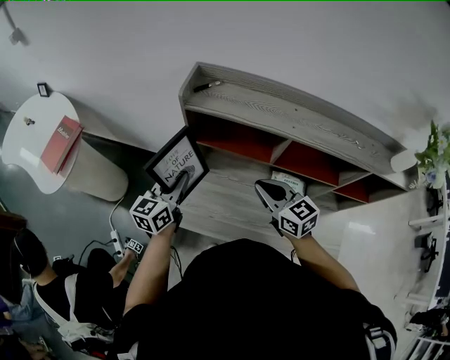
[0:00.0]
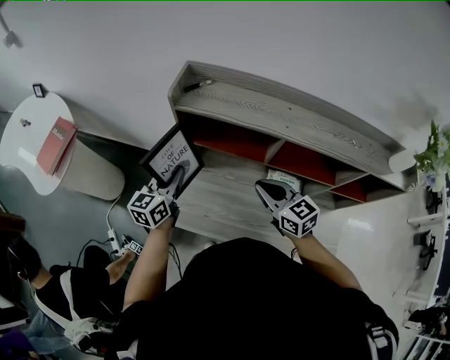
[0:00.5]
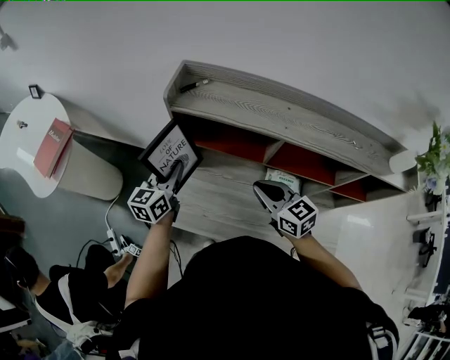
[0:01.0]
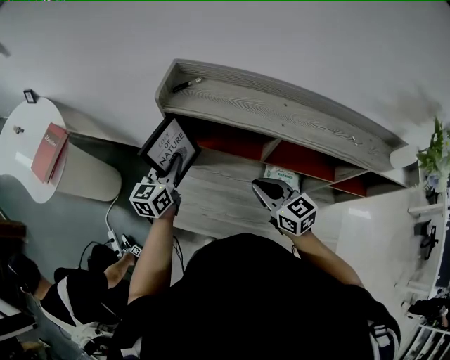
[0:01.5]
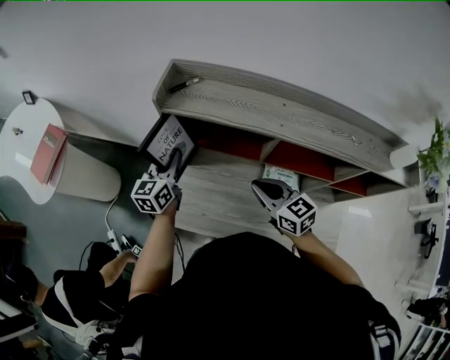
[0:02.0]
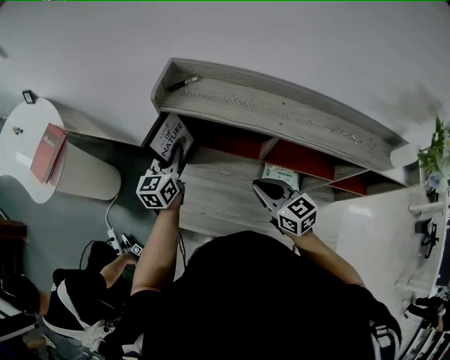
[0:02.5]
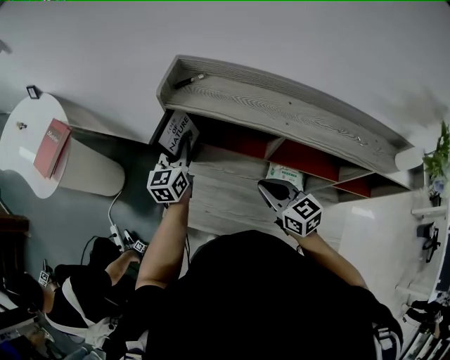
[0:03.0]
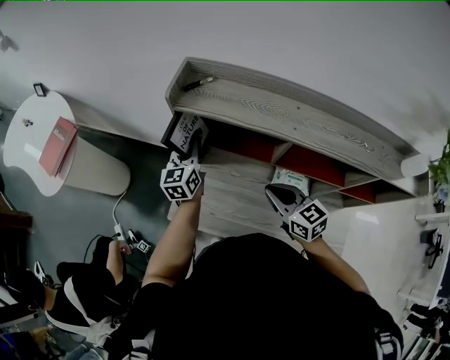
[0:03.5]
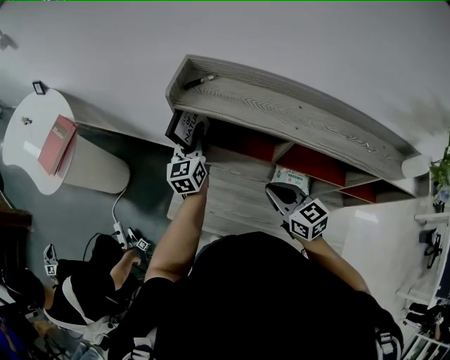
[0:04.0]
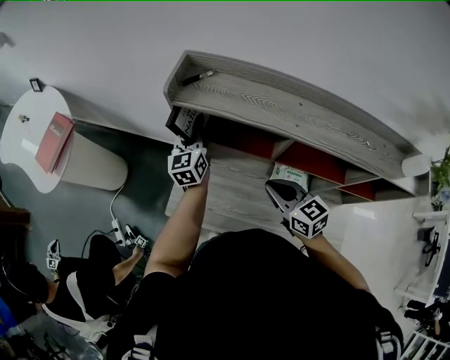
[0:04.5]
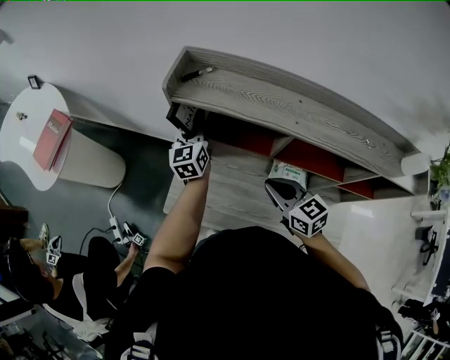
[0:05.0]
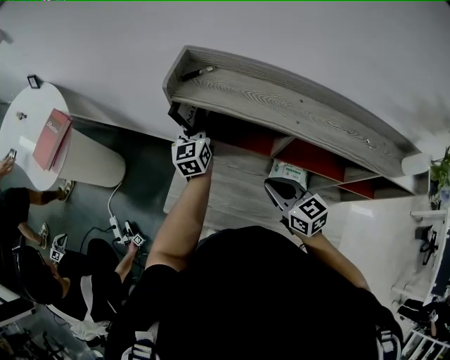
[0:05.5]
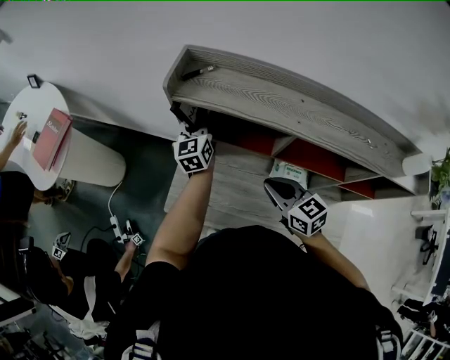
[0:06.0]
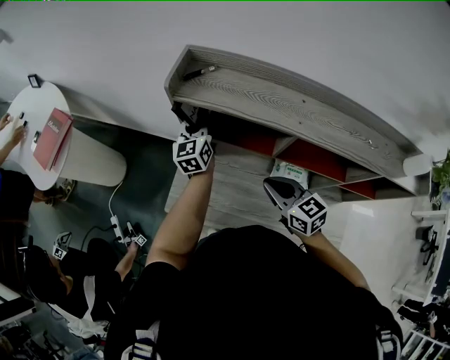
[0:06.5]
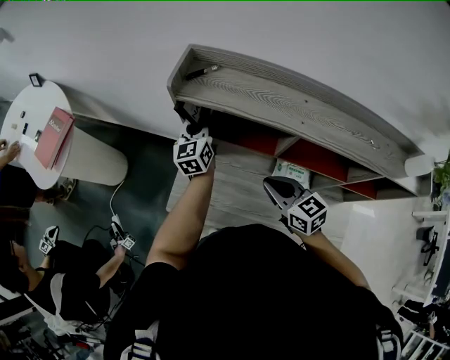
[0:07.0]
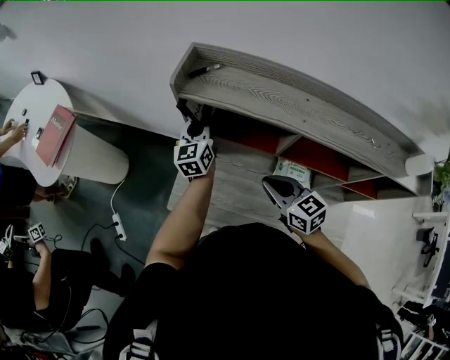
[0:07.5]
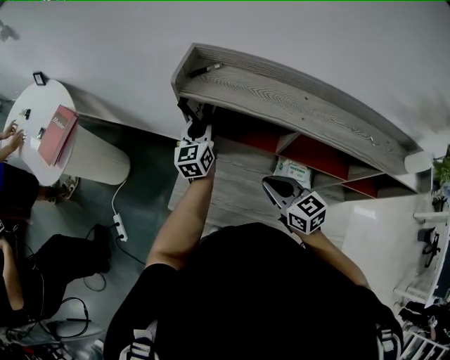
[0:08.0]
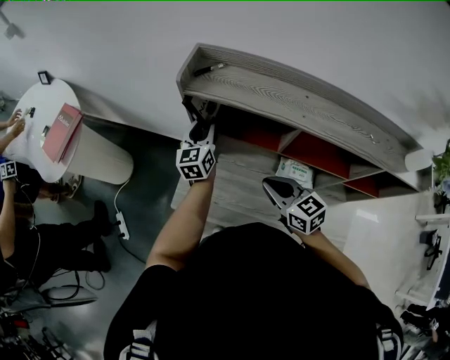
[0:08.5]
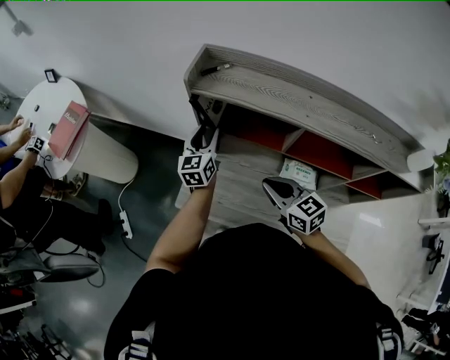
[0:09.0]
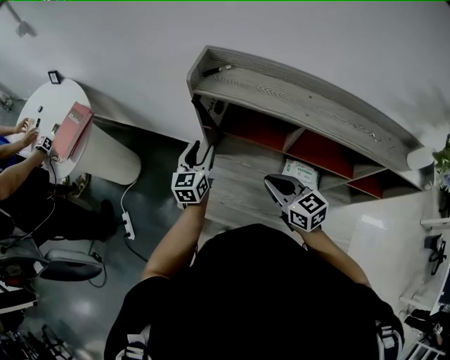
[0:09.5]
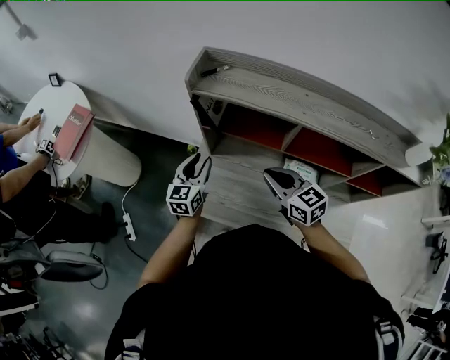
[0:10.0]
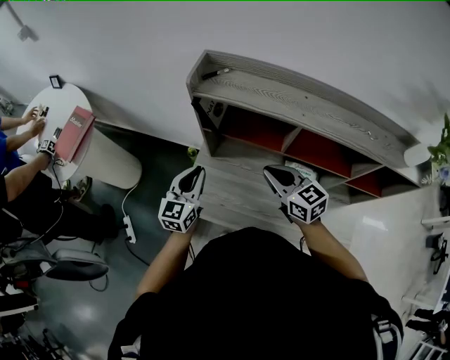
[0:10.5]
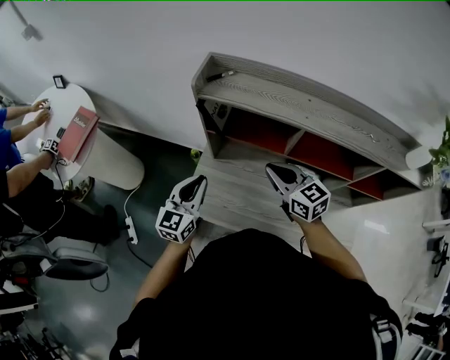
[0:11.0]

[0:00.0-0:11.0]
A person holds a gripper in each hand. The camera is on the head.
0:00.0 to 0:02.0: The left gripper is displaced forward by some 10 cm.
0:02.0 to 0:03.5: The grippers make only small movements.
0:03.5 to 0:05.5: The left gripper ends up some 5 cm from where it was.
0:05.5 to 0:07.5: The grippers stay close to where they were, moving slightly.
0:07.5 to 0:09.0: The left gripper shifts about 5 cm backward, and opens.
0:09.0 to 0:11.0: The left gripper shifts roughly 15 cm backward, and closes. The right gripper shifts by approximately 5 cm.

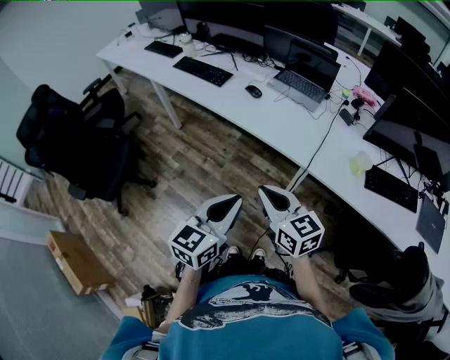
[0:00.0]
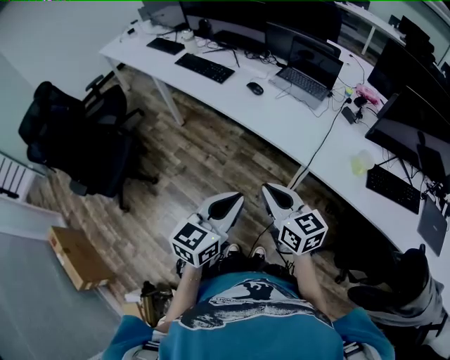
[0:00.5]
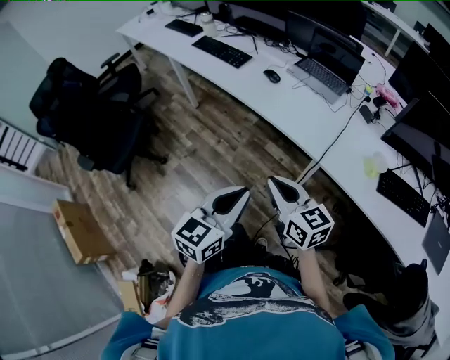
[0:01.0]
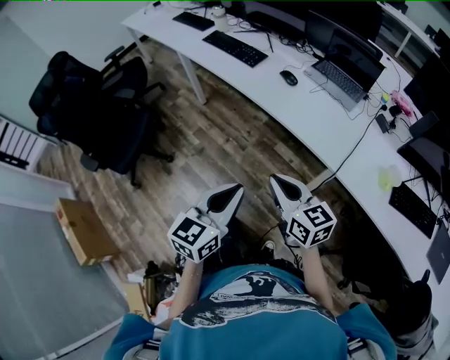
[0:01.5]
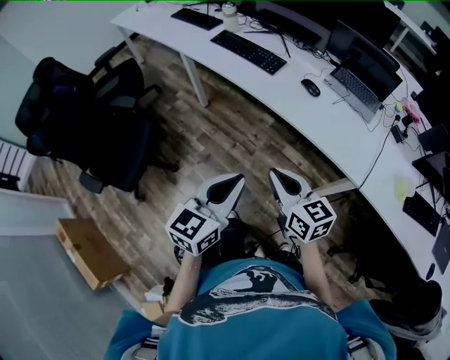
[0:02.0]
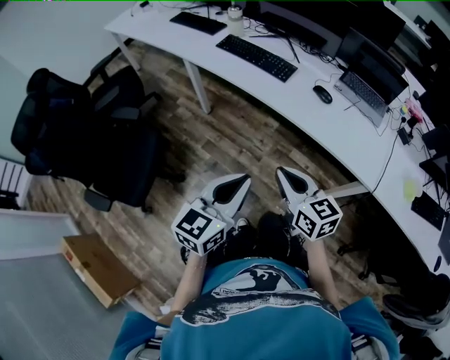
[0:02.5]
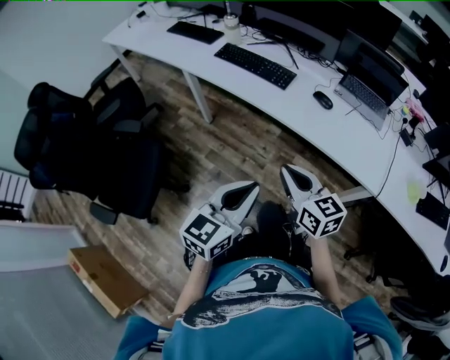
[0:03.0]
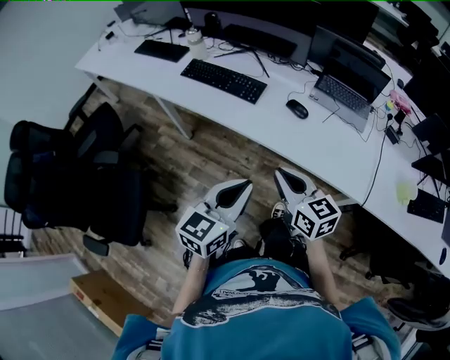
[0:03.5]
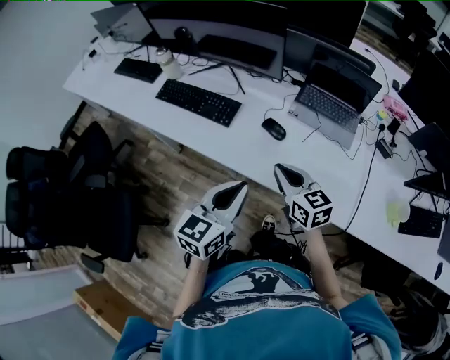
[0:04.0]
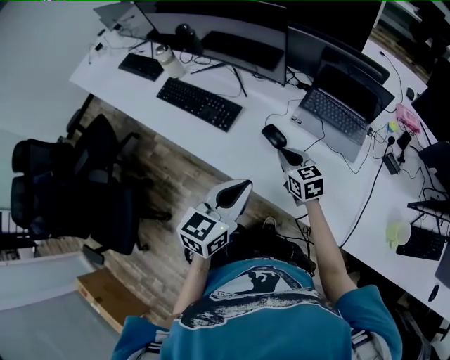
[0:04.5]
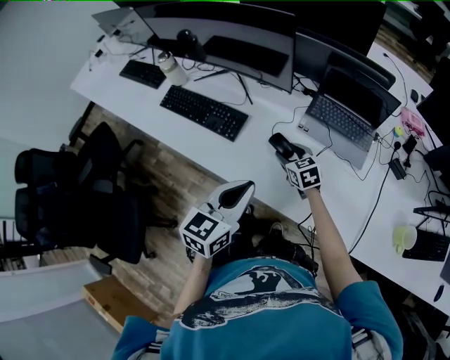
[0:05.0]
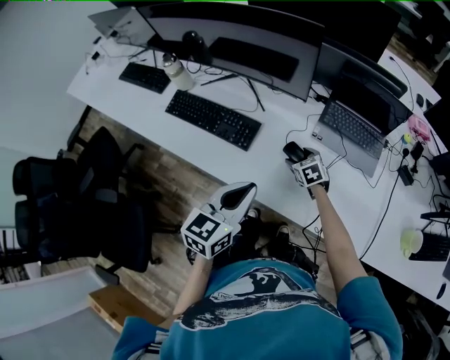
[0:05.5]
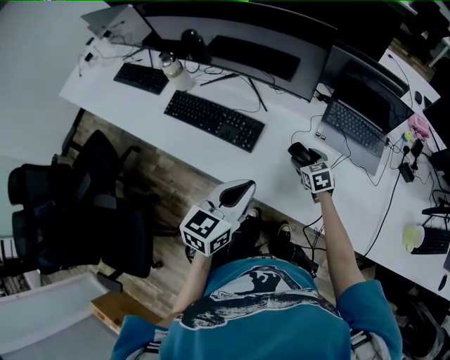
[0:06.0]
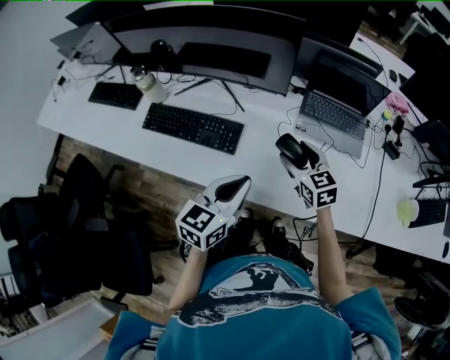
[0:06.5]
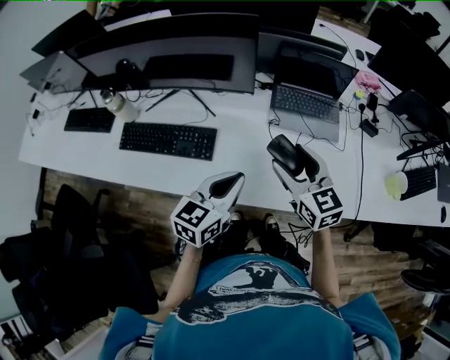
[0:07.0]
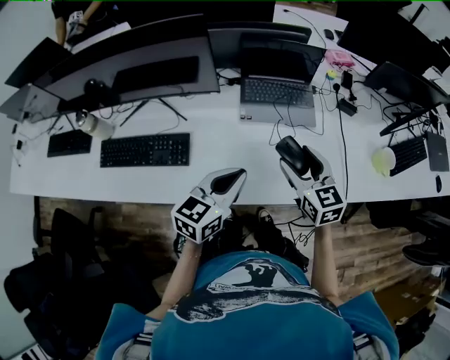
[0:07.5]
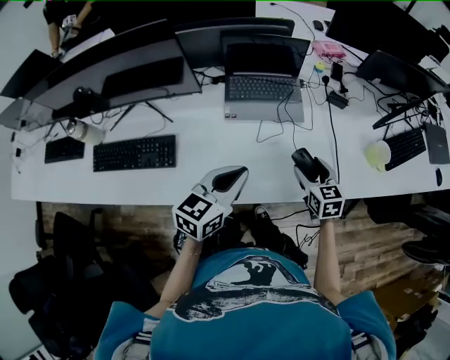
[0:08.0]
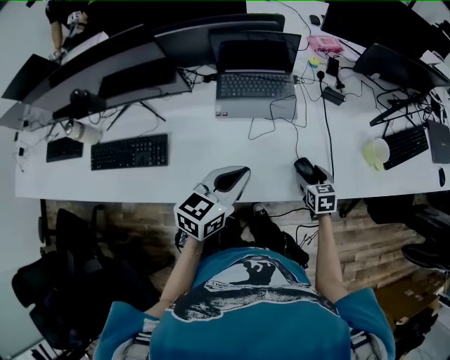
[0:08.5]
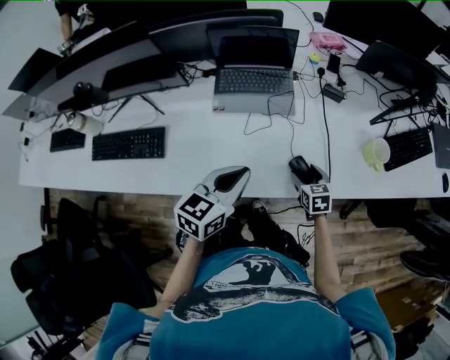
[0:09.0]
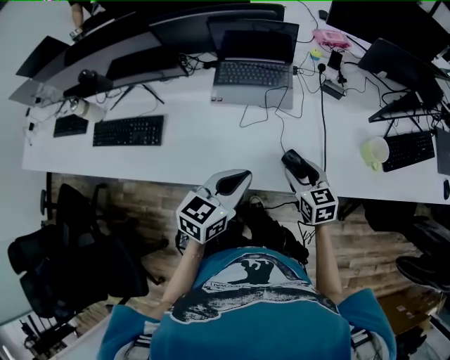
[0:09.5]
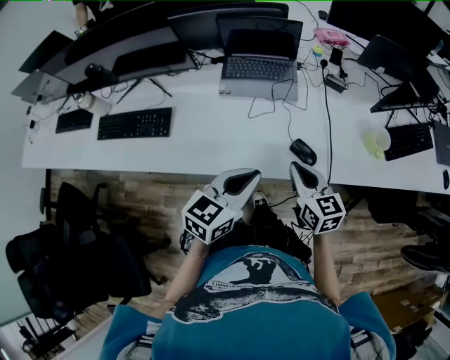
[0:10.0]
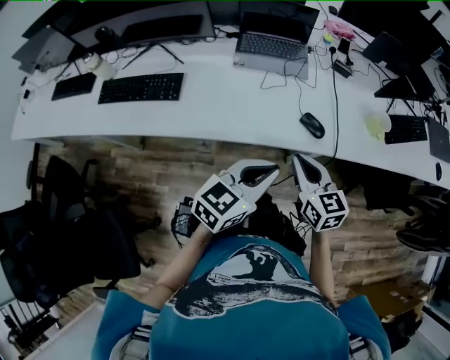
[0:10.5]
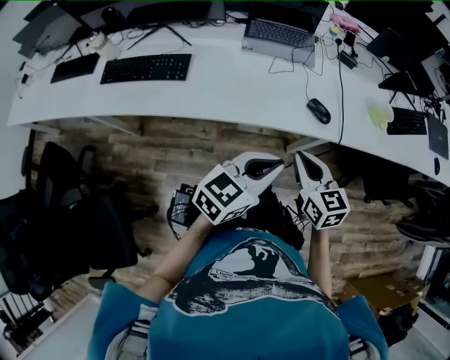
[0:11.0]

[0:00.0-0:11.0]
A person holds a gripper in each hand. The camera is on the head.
0:00.0 to 0:02.0: The two grippers go approximately 25 cm to the left and forward.
0:02.0 to 0:03.5: Both grippers move forward, roughly 15 cm.
0:03.5 to 0:05.5: The right gripper goes about 40 cm forward and downward, points its fingers about 40 degrees further downward, and opens up, while the left gripper travels forward by roughly 25 cm.
0:05.5 to 0:07.5: The right gripper shifts roughly 20 cm upward, and changes its angle by about 40 degrees. The left gripper ends up roughly 10 cm from where it was, and rotates roughly 30 degrees.
0:07.5 to 0:09.0: The right gripper is displaced downward and to the right by approximately 30 cm, and turns by roughly 30 degrees. The left gripper heads to the right, covering about 15 cm.
0:09.0 to 0:11.0: The right gripper heads backward and upward, covering some 30 cm, turns by about 20 degrees, and closes. Meanwhile the left gripper moves backward, approximately 20 cm.

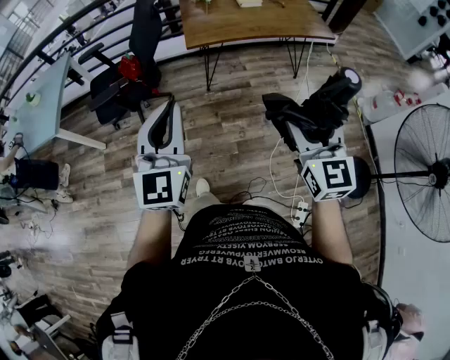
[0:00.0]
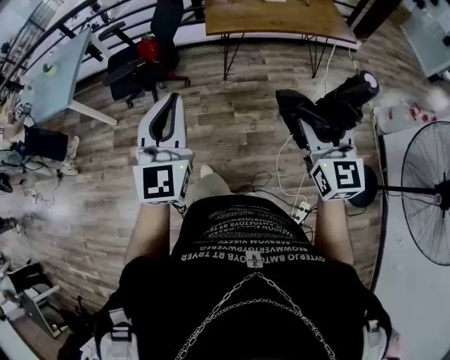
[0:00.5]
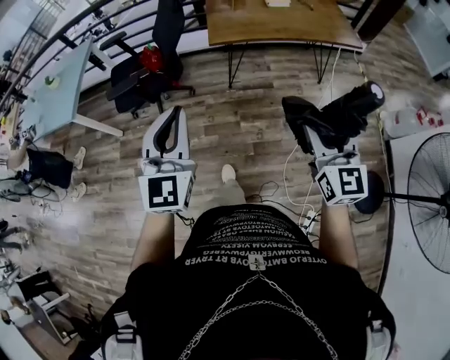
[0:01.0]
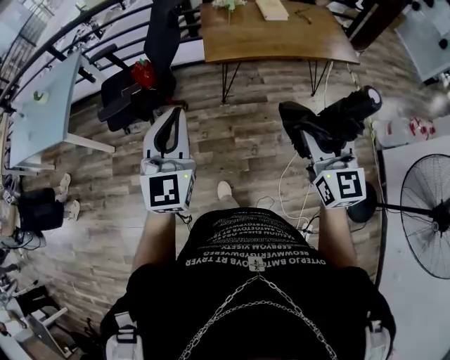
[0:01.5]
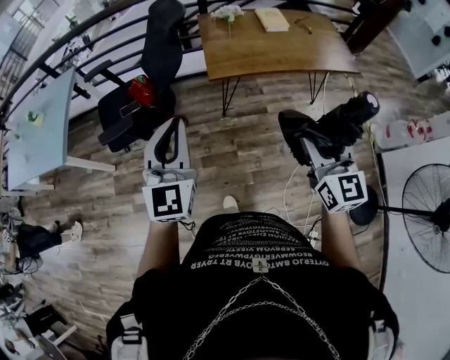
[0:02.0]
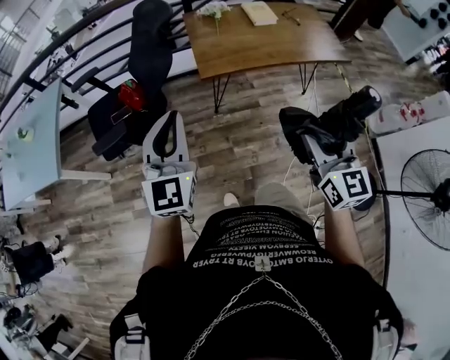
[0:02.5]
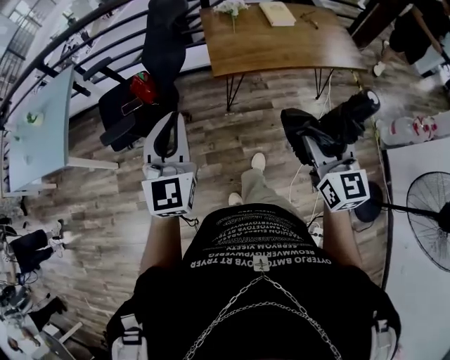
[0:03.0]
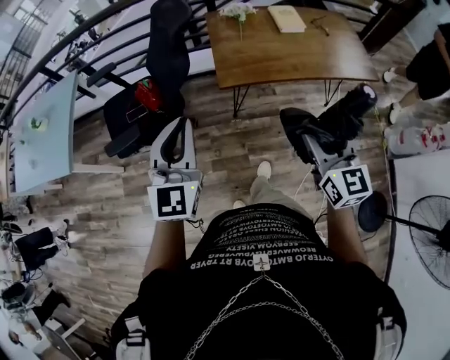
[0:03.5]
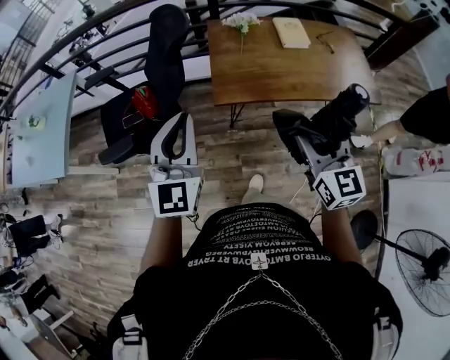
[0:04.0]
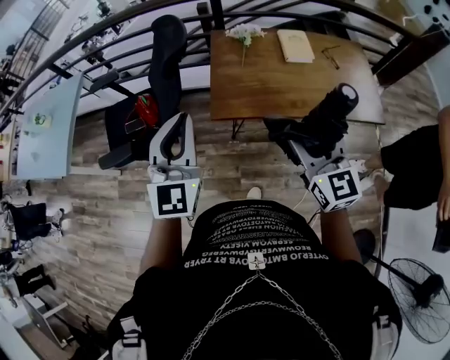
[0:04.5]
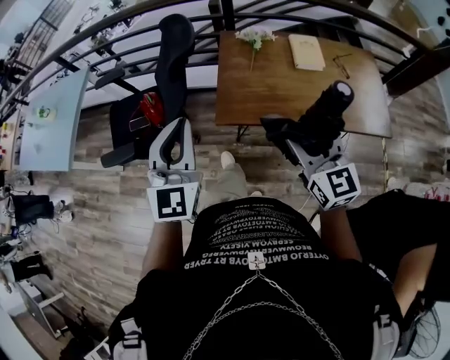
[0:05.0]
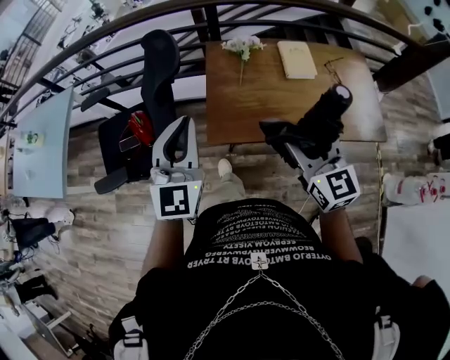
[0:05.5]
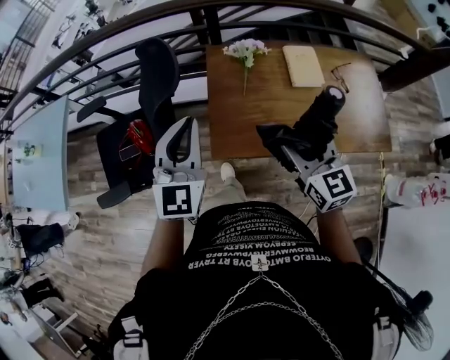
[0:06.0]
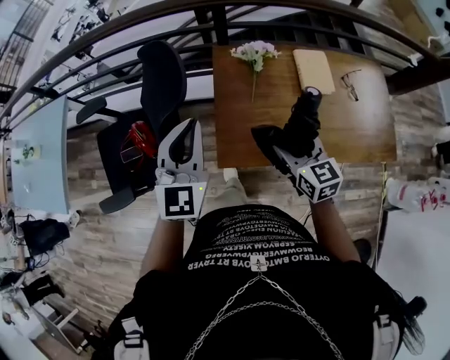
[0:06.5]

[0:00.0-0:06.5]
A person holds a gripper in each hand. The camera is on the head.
0:00.0 to 0:02.0: Both grippers travel together forward, roughly 20 cm.
0:02.0 to 0:04.5: The right gripper travels forward by approximately 25 cm; the left gripper shifts approximately 25 cm forward and to the right.
0:04.5 to 0:06.5: The right gripper heads forward and downward, covering roughly 30 cm, and turns by roughly 20 degrees. The left gripper travels forward by approximately 30 cm.
